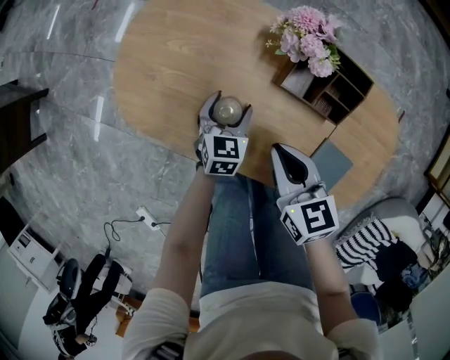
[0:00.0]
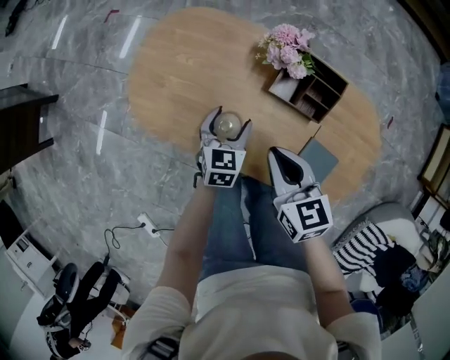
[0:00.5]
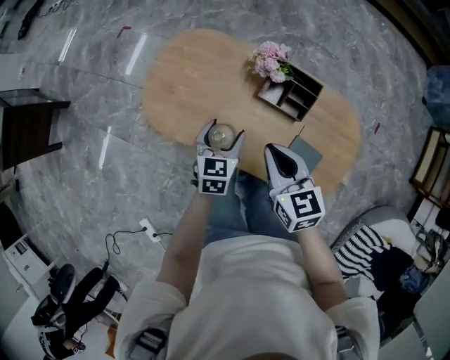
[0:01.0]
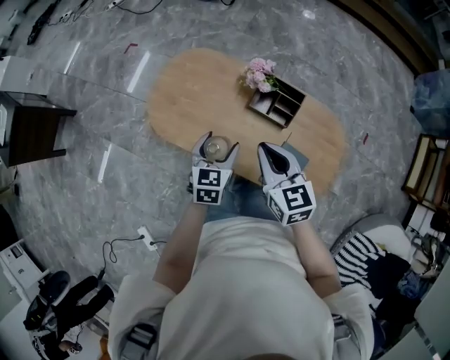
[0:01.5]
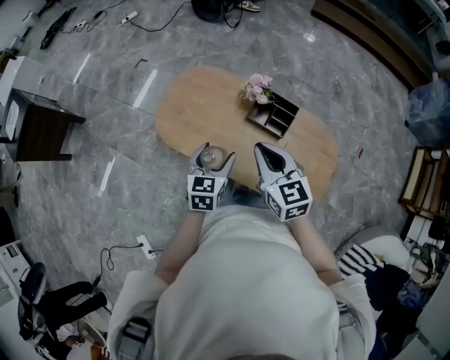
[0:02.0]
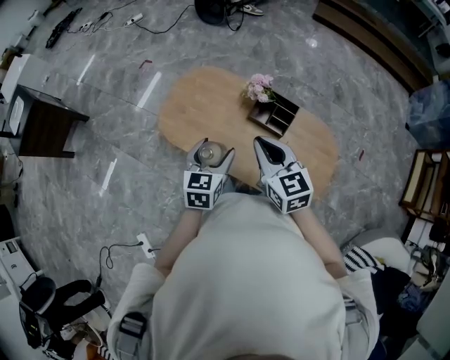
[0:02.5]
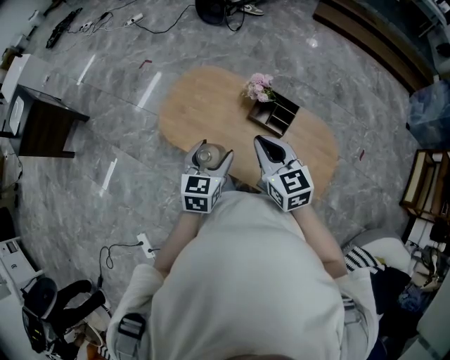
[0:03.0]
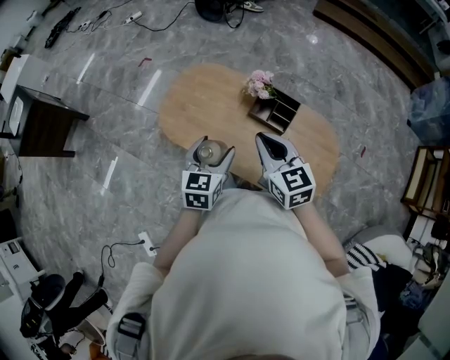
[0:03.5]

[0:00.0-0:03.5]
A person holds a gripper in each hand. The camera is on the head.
0:00.0 to 0:02.0: Both grippers move upward, roughly 30 cm. The right gripper swivels about 20 degrees.
0:02.0 to 0:03.5: There are only small adjustments of the grippers.

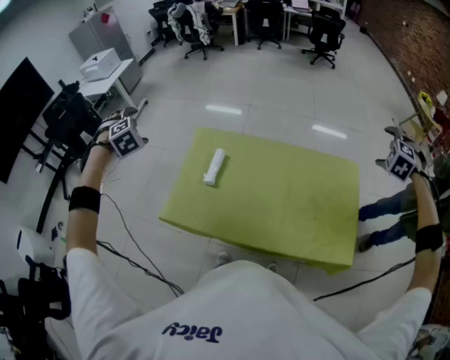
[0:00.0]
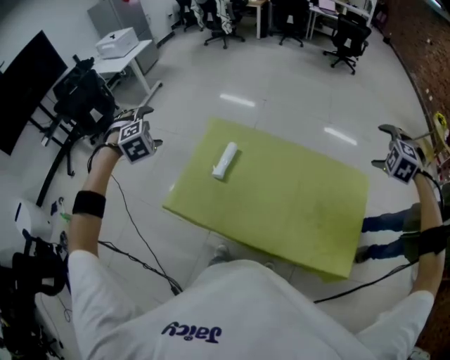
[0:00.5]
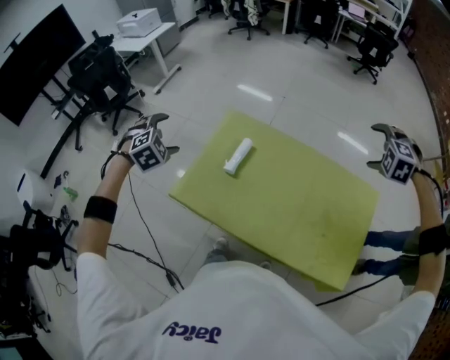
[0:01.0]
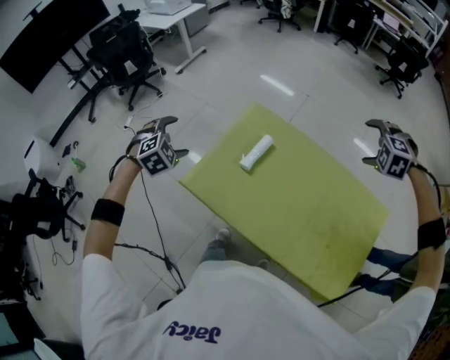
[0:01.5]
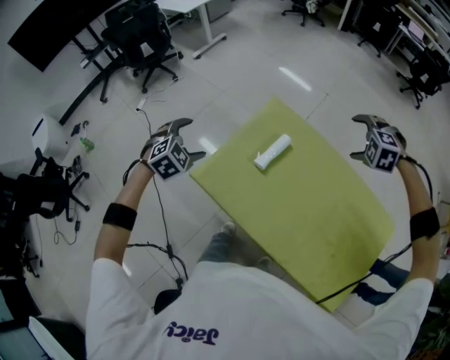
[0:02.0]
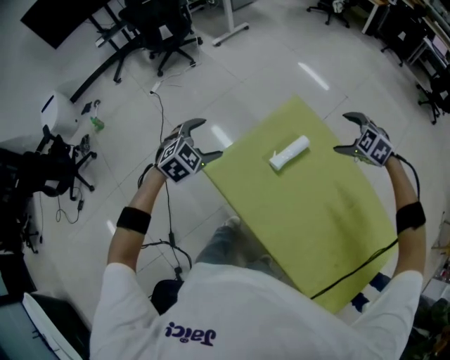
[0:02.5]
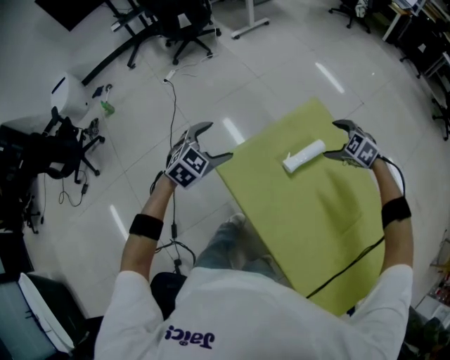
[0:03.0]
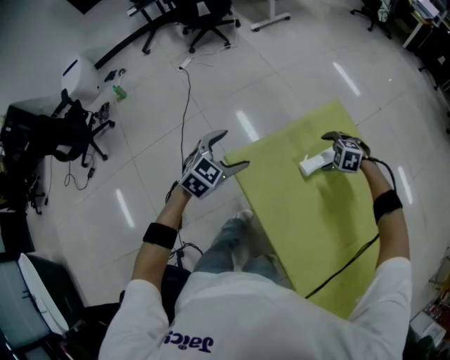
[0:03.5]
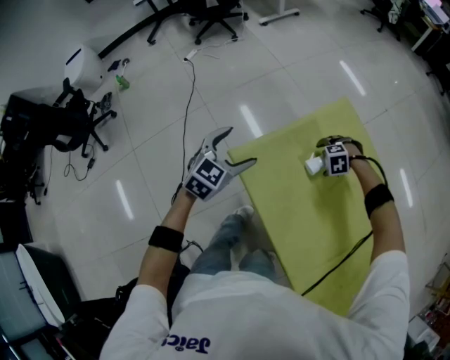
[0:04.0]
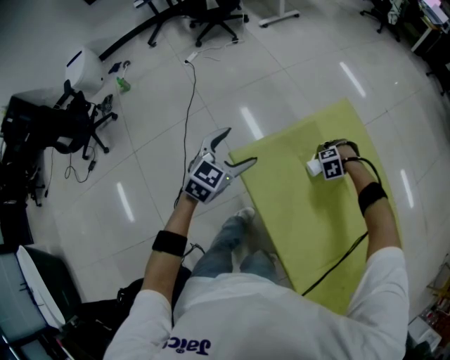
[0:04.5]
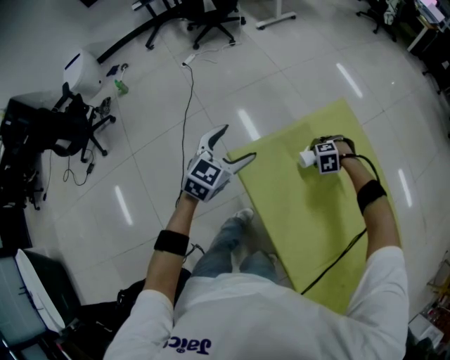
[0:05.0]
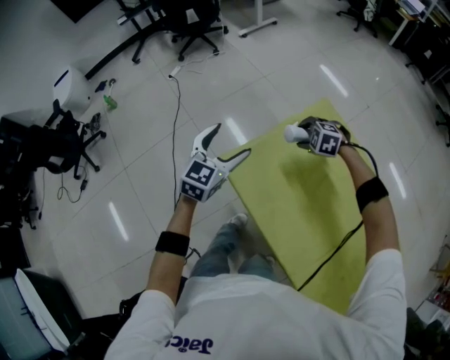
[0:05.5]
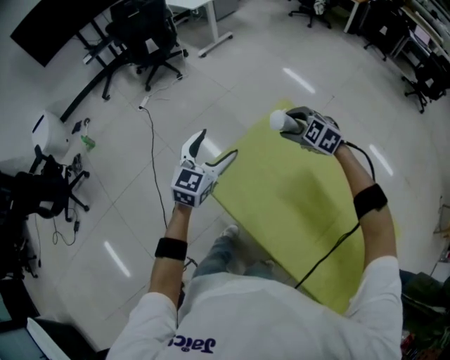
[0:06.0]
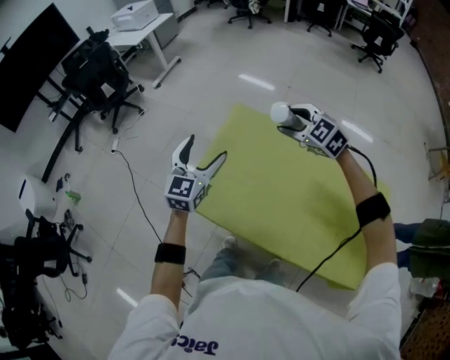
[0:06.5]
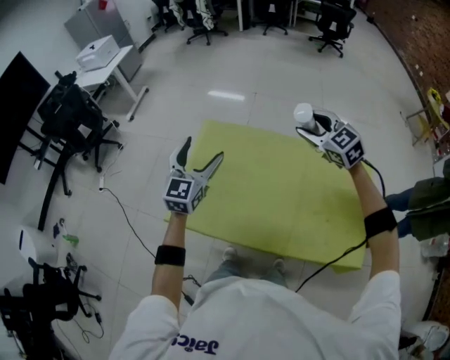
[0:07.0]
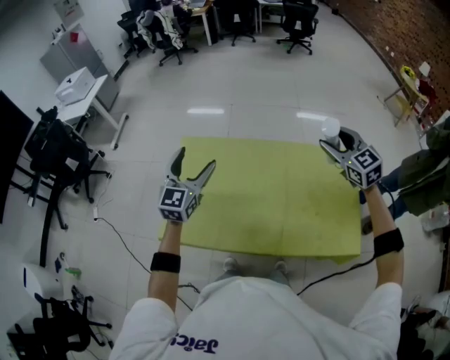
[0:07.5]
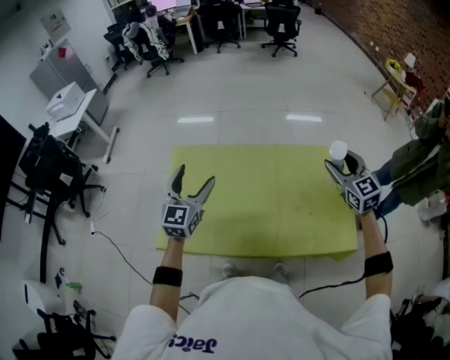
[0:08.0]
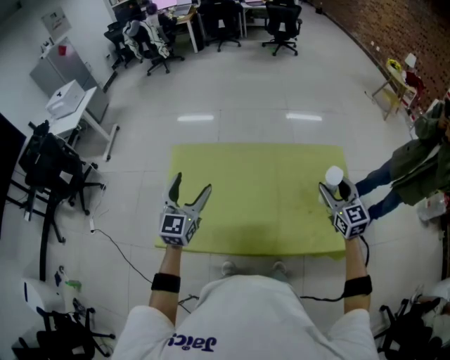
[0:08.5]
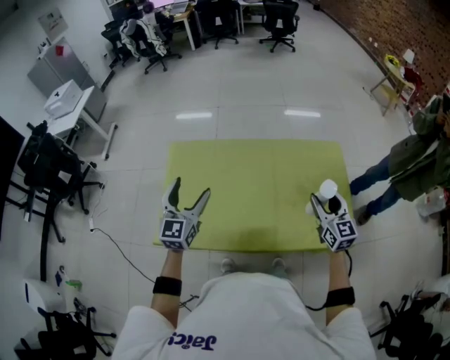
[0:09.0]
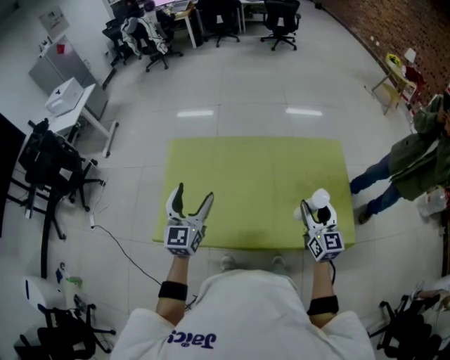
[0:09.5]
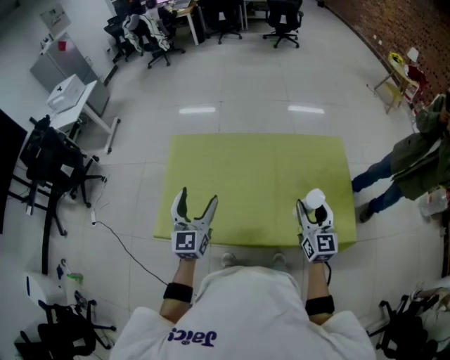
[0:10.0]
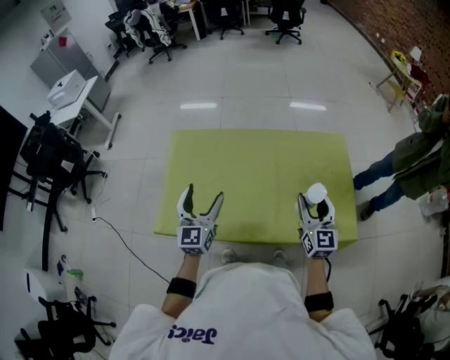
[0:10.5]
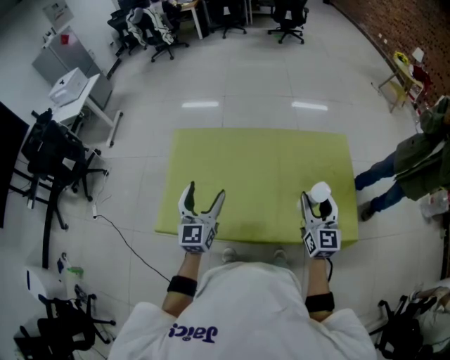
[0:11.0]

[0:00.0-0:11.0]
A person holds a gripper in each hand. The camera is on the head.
0:00.0 to 0:02.0: The left gripper travels downward and backward by roughly 15 cm, and rotates approximately 30 degrees. Meanwhile the right gripper goes approximately 40 cm to the left and forward, and swivels about 50 degrees.
0:02.0 to 0:03.5: The right gripper heads downward, covering about 25 cm, and rotates approximately 30 degrees. Meanwhile the left gripper shifts roughly 10 cm downward, and changes its angle by about 40 degrees.
0:03.5 to 0:05.5: The left gripper shifts about 5 cm upward, and turns by about 20 degrees; the right gripper ends up roughly 10 cm from where it was, and closes up.
0:05.5 to 0:07.5: The right gripper ends up approximately 60 cm from where it was, and tips its fingers upward by approximately 50 degrees; the left gripper changes place by approximately 30 cm, and changes its angle by about 40 degrees.
0:07.5 to 0:09.0: The left gripper shifts about 10 cm backward. The right gripper goes roughly 20 cm backward and downward, and changes its angle by some 30 degrees.
0:09.0 to 0:11.0: The left gripper moves about 5 cm. Meanwhile the right gripper ends up approximately 5 cm from where it was.

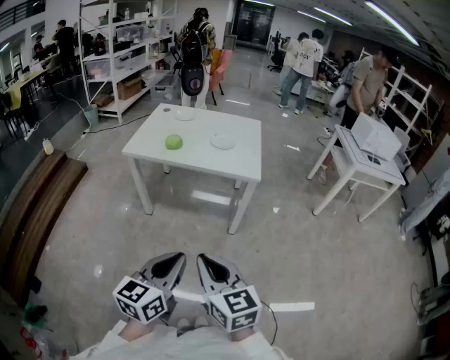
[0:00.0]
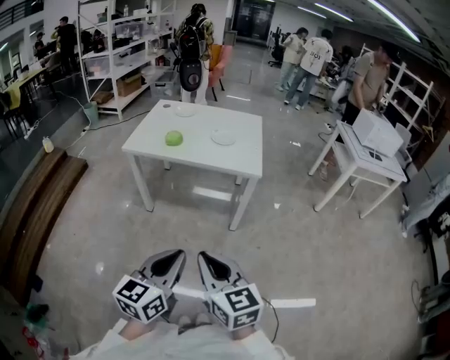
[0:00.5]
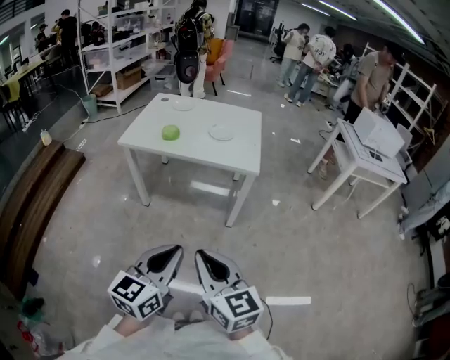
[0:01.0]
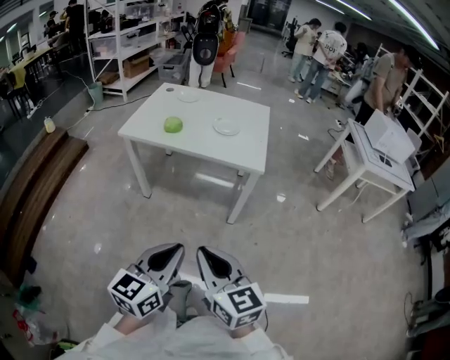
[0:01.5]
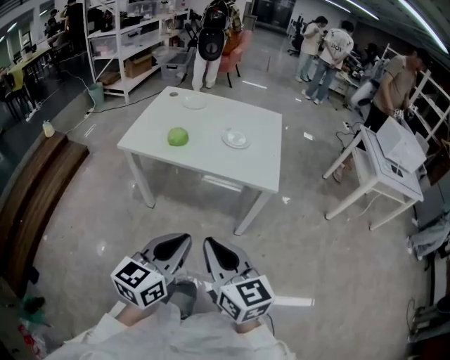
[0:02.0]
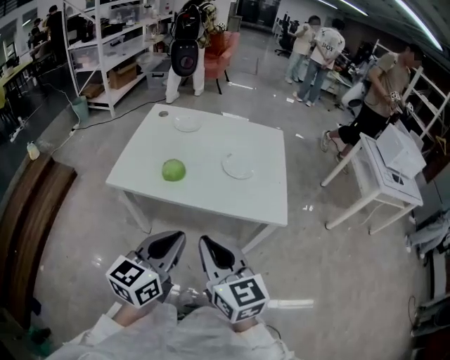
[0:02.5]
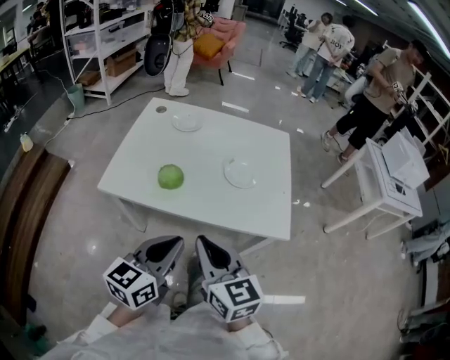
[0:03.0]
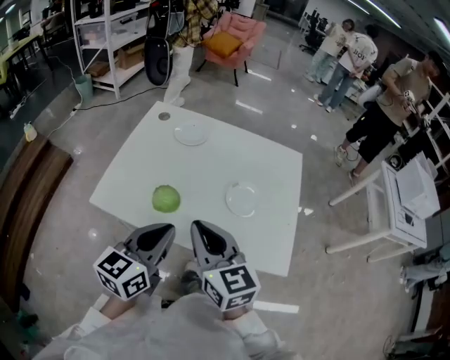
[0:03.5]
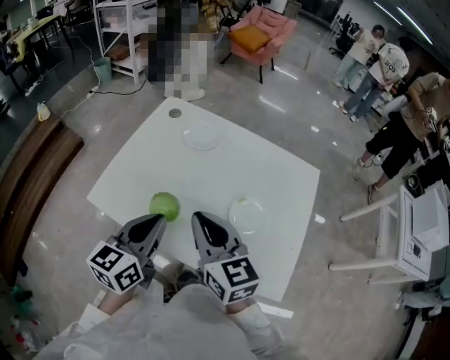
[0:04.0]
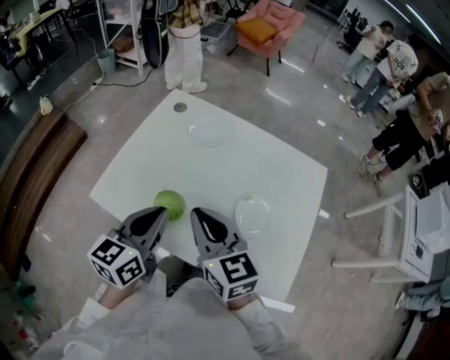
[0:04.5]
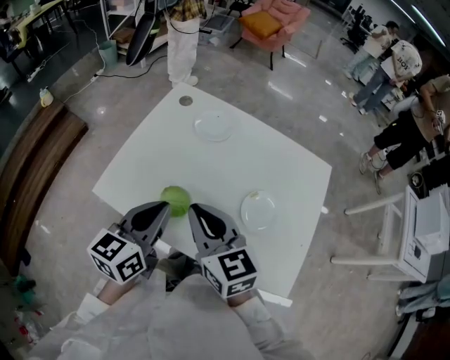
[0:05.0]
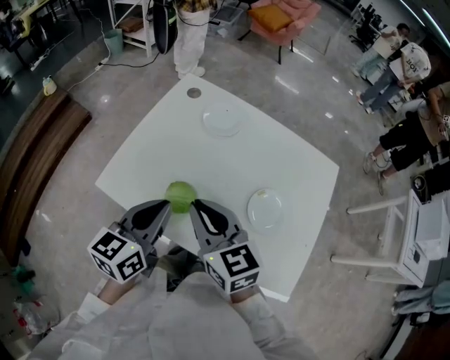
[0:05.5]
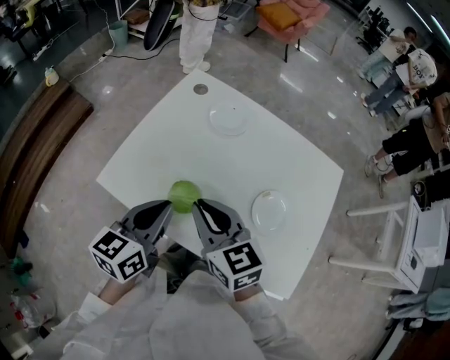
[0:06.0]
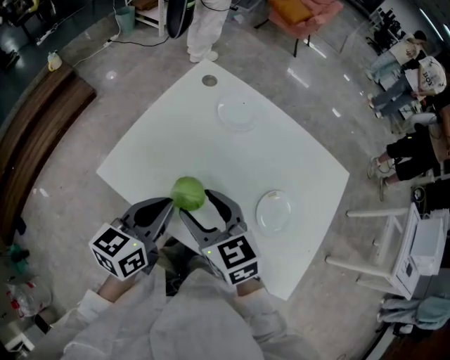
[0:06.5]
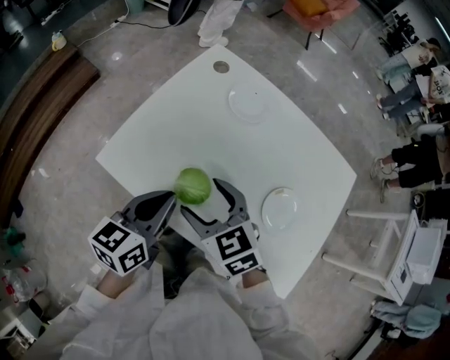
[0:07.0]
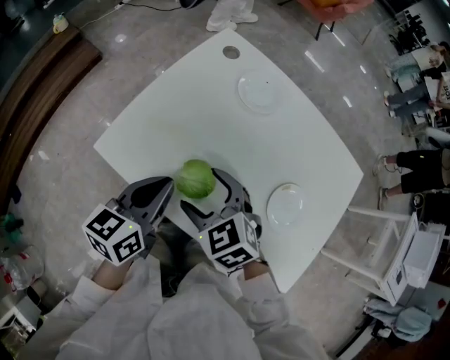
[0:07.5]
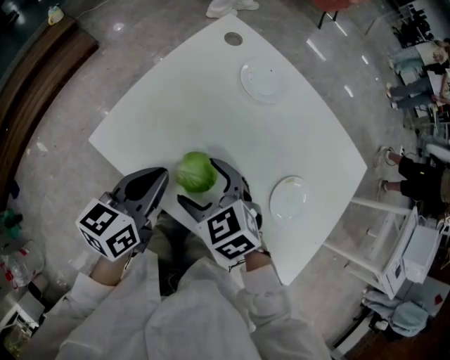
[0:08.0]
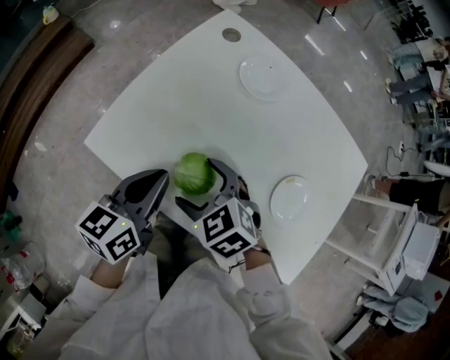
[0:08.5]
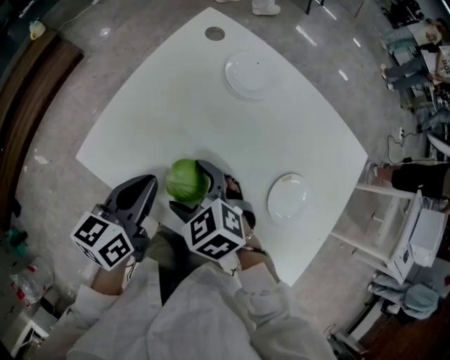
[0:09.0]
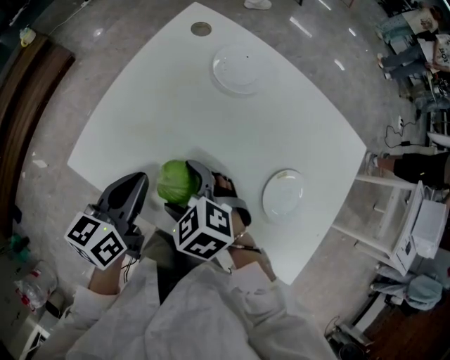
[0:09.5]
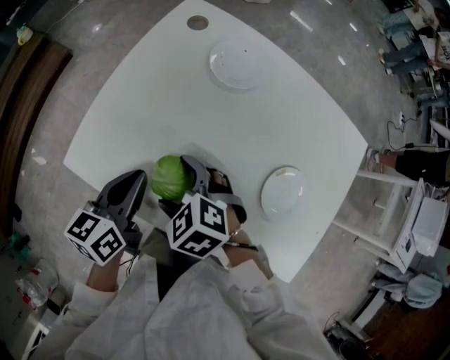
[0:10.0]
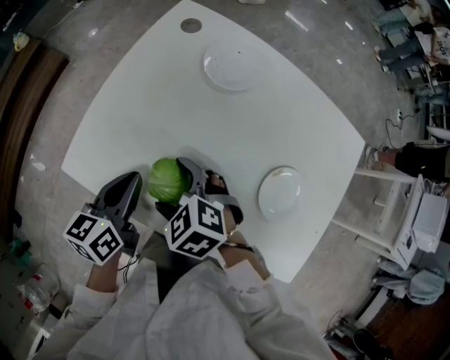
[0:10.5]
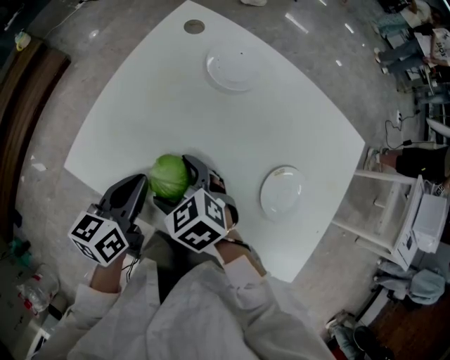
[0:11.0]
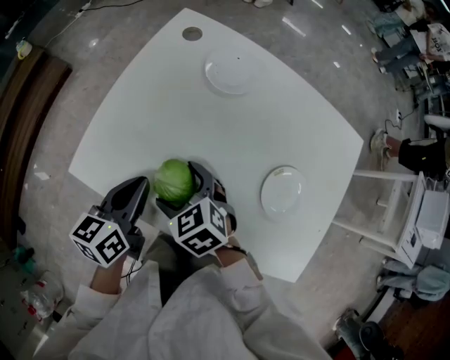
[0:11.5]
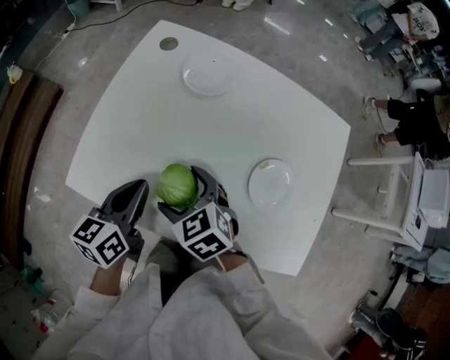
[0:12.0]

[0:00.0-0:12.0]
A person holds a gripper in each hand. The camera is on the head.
0:00.0 to 0:02.0: The grippers both shift forward by approximately 20 cm.
0:02.0 to 0:04.0: The two grippers travel together, forward, approximately 50 cm.
0:04.0 to 0:06.0: The left gripper changes place by roughly 5 cm, while the right gripper goes about 5 cm to the left.
0:06.0 to 0:08.0: The left gripper moves downward, approximately 10 cm. The right gripper is displaced downward by about 15 cm, turns by approximately 40 degrees, and opens.
0:08.0 to 0:10.0: The left gripper shifts by some 5 cm.
0:10.0 to 0:12.0: The right gripper changes its angle by some 30 degrees.
